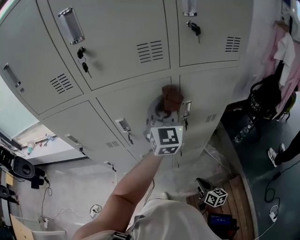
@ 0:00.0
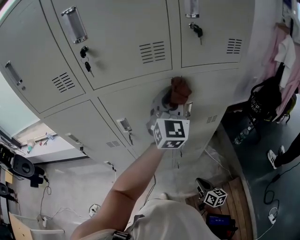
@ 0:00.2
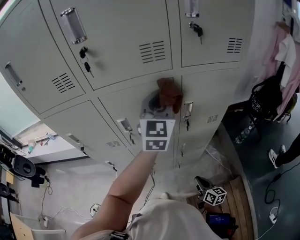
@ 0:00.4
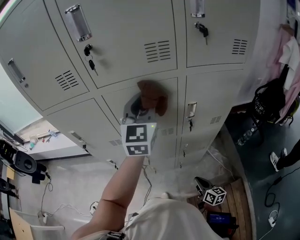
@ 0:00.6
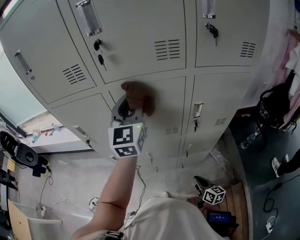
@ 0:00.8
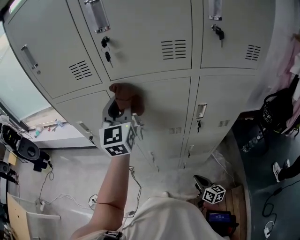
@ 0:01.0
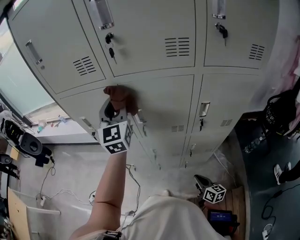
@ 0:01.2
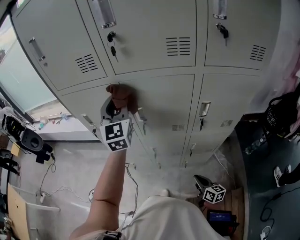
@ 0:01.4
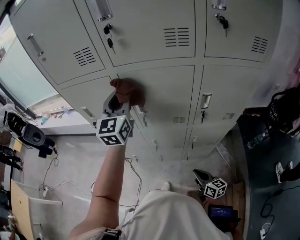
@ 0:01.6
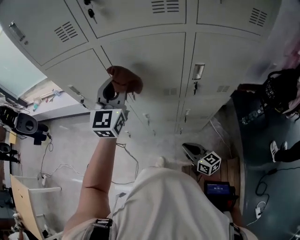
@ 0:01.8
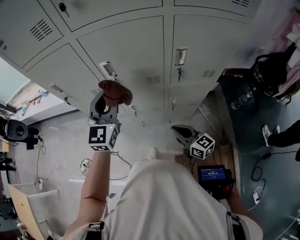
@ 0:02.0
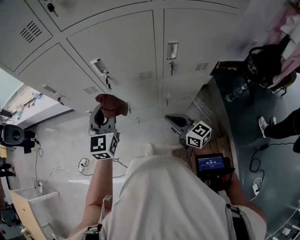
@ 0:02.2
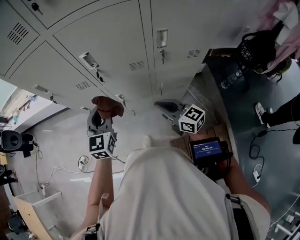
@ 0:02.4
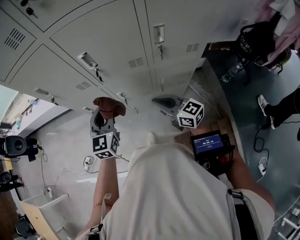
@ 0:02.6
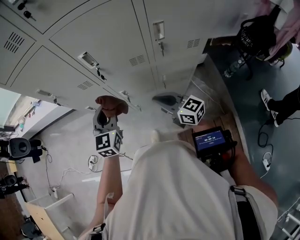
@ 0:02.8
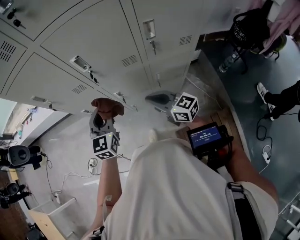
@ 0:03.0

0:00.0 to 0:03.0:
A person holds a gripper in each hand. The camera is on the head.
0:00.0 to 0:01.6: The right gripper changes place by approximately 5 cm, and rotates roughly 20 degrees. Meanwhile the left gripper heads to the left, covering about 25 cm.
0:01.6 to 0:03.0: The left gripper goes some 25 cm downward and backward, and swivels roughly 20 degrees, while the right gripper goes about 15 cm upward, forward and to the left, and swivels roughly 20 degrees.

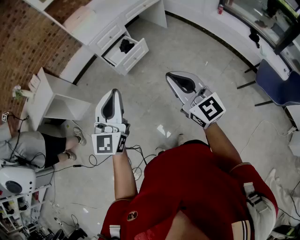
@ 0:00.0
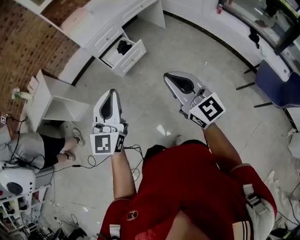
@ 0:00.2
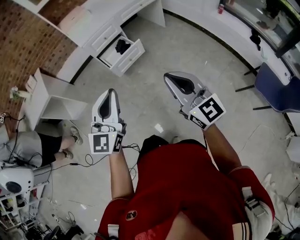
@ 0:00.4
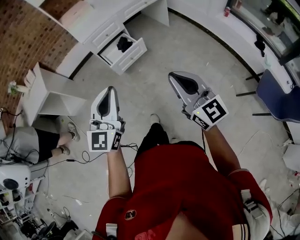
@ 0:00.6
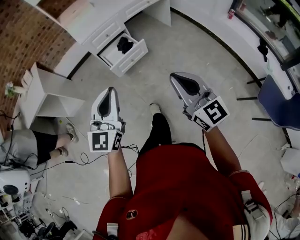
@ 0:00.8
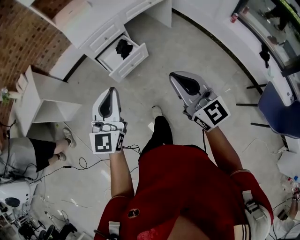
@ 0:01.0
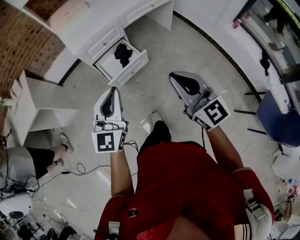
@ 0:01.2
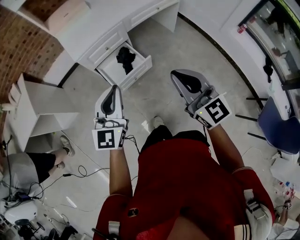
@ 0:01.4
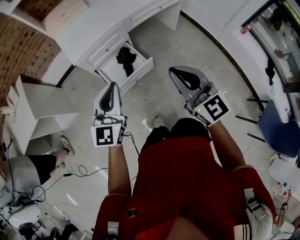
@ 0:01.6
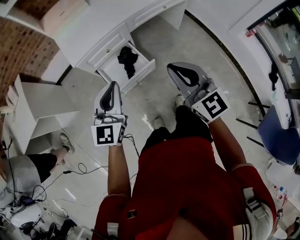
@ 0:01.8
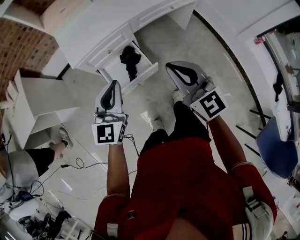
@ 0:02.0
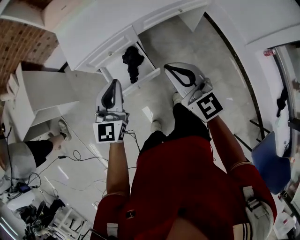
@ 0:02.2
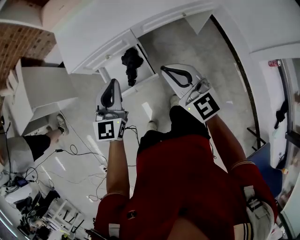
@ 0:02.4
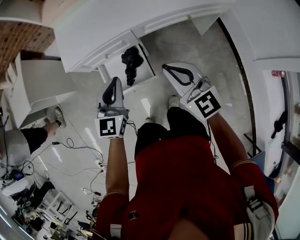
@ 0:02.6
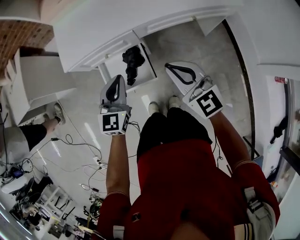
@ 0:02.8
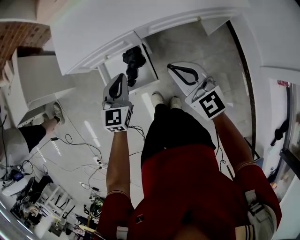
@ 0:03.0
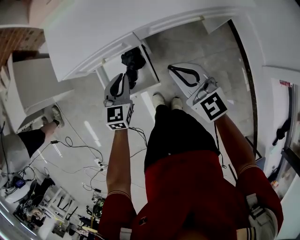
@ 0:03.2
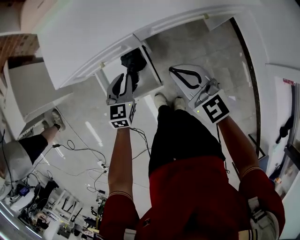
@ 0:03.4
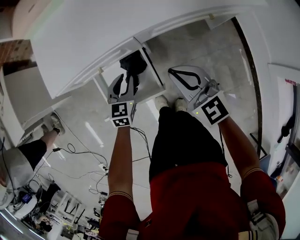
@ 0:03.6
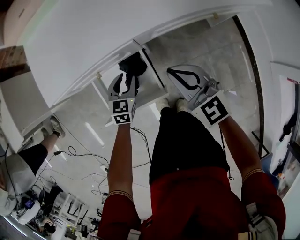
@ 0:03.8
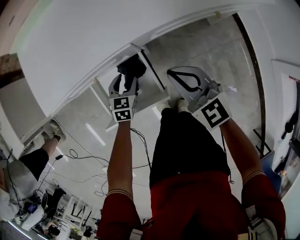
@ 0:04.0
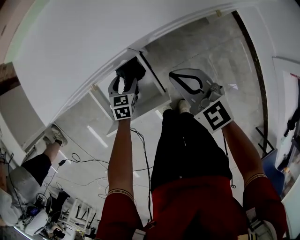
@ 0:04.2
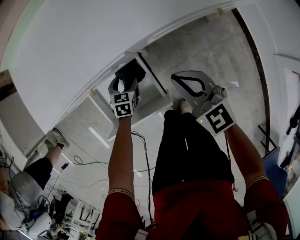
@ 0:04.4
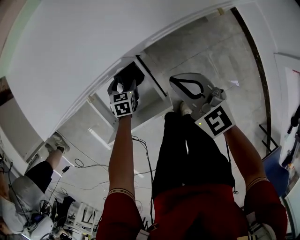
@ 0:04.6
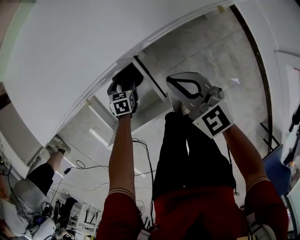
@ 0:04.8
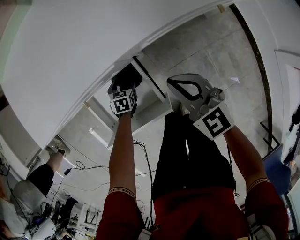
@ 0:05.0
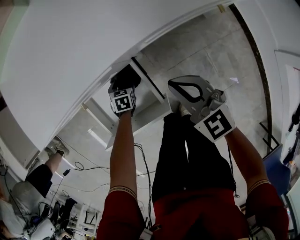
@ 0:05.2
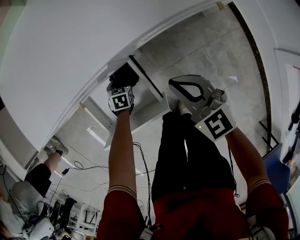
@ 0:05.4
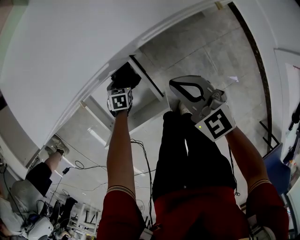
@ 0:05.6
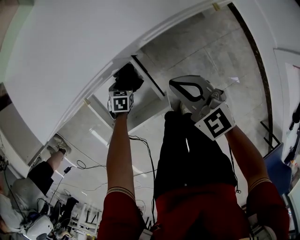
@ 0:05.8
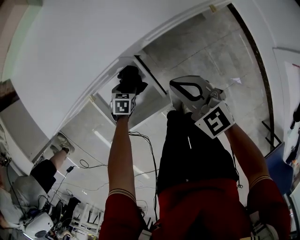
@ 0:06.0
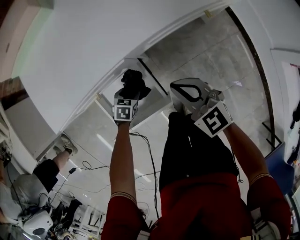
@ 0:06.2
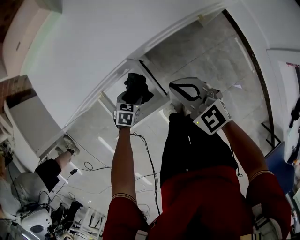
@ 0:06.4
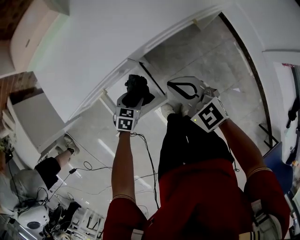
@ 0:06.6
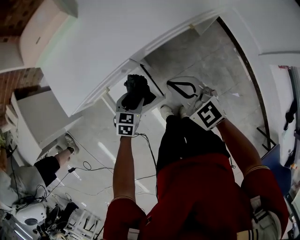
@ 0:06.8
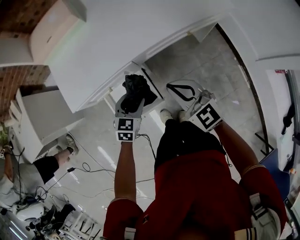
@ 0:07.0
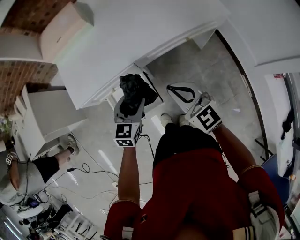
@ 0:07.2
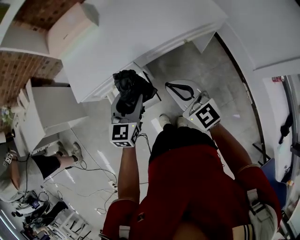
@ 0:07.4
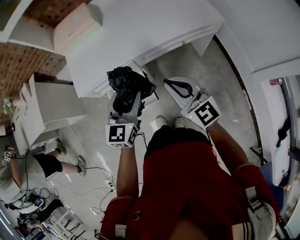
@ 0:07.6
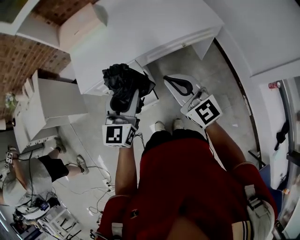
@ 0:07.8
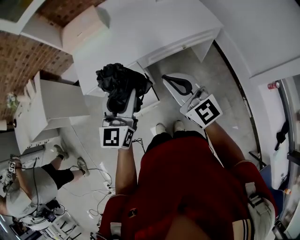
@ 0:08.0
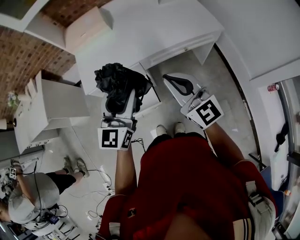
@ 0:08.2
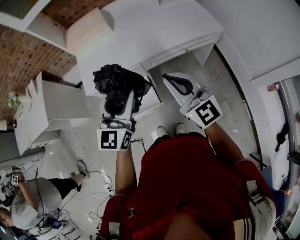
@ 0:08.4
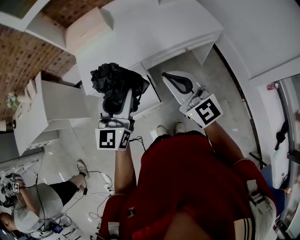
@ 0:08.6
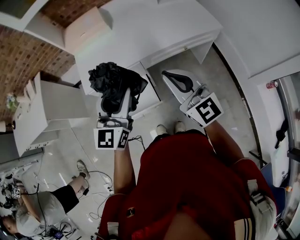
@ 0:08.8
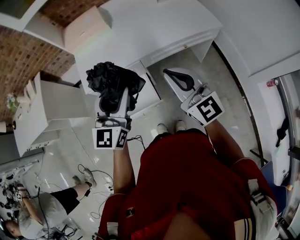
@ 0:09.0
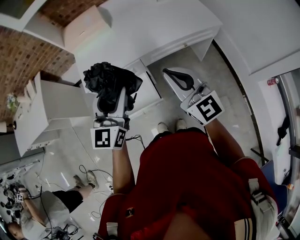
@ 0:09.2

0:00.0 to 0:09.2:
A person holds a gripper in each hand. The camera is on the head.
0:00.0 to 0:01.6: The two grippers travel together, forward, about 50 cm.
0:01.6 to 0:03.0: The left gripper travels forward, downward and to the right by roughly 35 cm, and swivels roughly 30 degrees; the right gripper goes about 35 cm forward and downward, and turns by about 30 degrees.
0:03.0 to 0:04.6: The left gripper moves downward, about 40 cm, tips its fingers downward by approximately 40 degrees, and opens; the right gripper is displaced downward by about 20 cm.
0:04.6 to 0:06.2: The left gripper travels backward by about 5 cm.
0:06.2 to 0:07.6: The left gripper travels upward by roughly 50 cm, and tilts its fingers about 50 degrees upward; the right gripper heads upward, covering some 30 cm, and swivels approximately 20 degrees.
0:07.6 to 0:09.2: The right gripper heads upward, covering about 10 cm. The left gripper moves upward and to the left, approximately 15 cm.

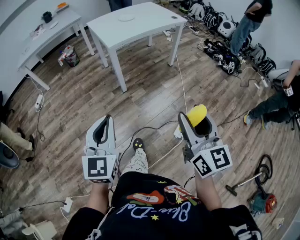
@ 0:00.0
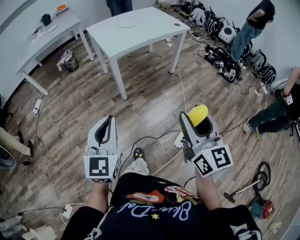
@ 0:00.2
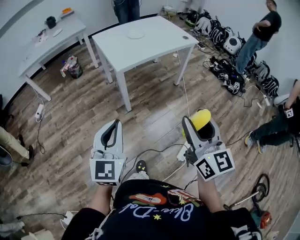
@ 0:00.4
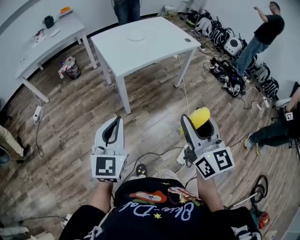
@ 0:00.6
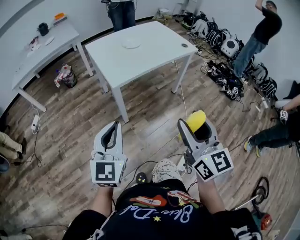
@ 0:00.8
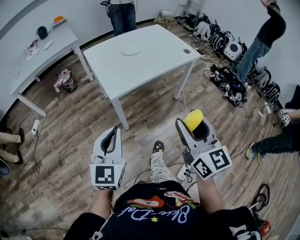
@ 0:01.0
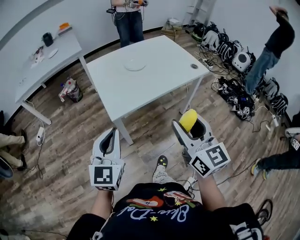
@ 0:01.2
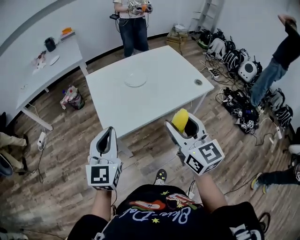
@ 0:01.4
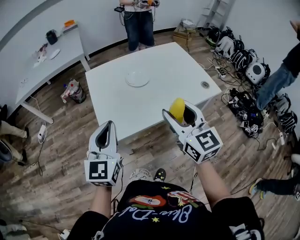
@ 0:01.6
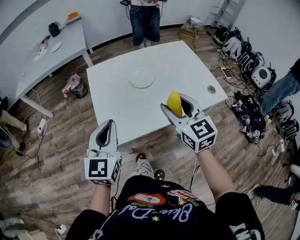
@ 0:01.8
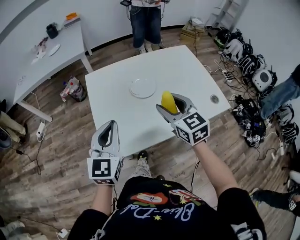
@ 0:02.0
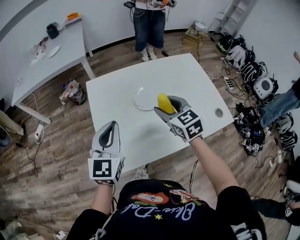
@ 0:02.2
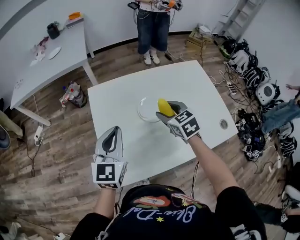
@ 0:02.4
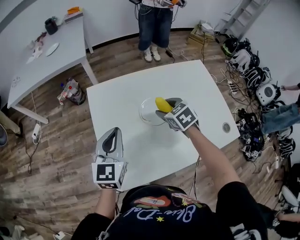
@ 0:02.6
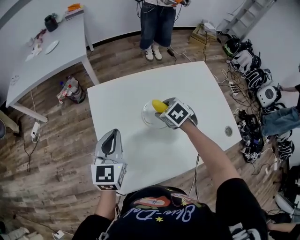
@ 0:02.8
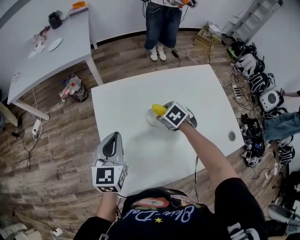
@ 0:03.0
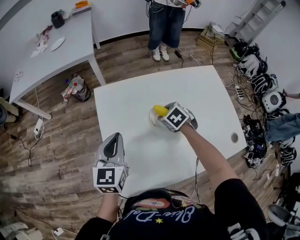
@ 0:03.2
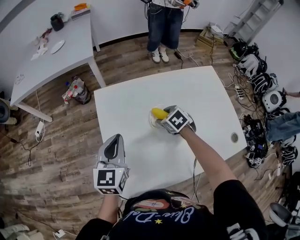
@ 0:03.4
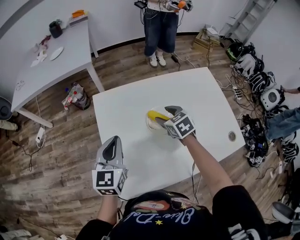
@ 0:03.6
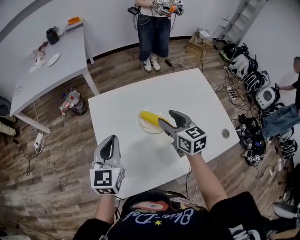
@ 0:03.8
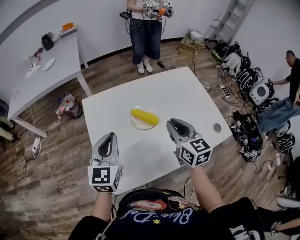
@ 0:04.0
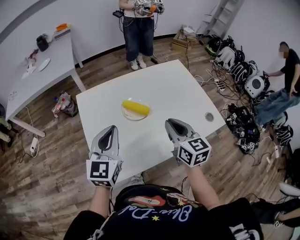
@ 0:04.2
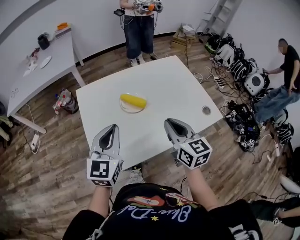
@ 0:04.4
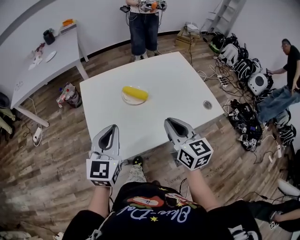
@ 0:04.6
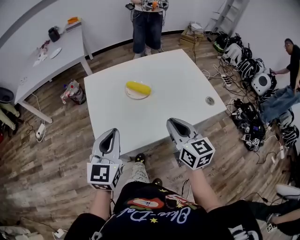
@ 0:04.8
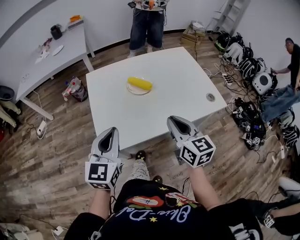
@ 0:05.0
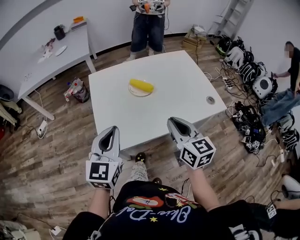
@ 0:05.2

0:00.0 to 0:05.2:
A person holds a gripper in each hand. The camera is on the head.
0:00.0 to 0:01.8: The pair of grippers is taken forward, roughly 80 cm. The right gripper turns by approximately 30 degrees.
0:01.8 to 0:03.4: The left gripper shifts approximately 30 cm forward. Meanwhile the right gripper travels forward and downward by approximately 40 cm, and points its fingers roughly 50 degrees further downward.
0:03.4 to 0:05.2: The right gripper travels backward and upward by roughly 40 cm, angles its fingers upward, by roughly 50 degrees, and closes. The left gripper heads backward, covering some 25 cm.

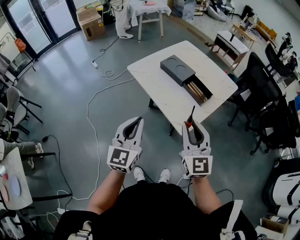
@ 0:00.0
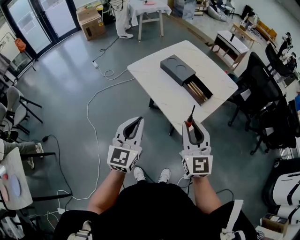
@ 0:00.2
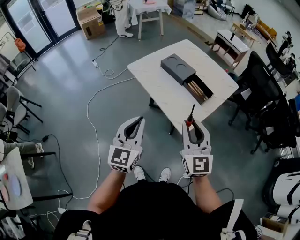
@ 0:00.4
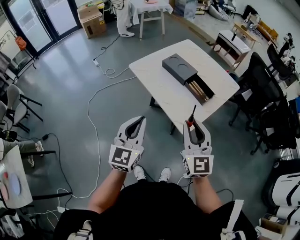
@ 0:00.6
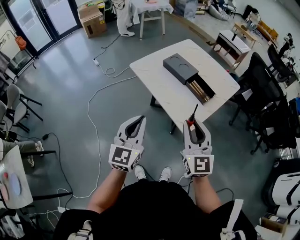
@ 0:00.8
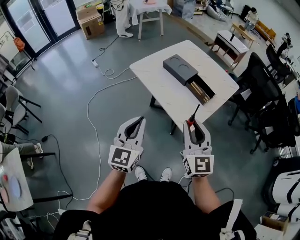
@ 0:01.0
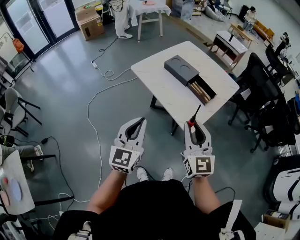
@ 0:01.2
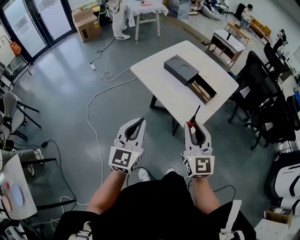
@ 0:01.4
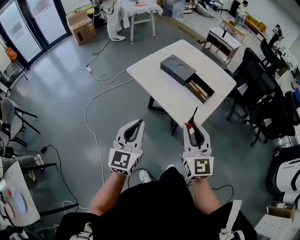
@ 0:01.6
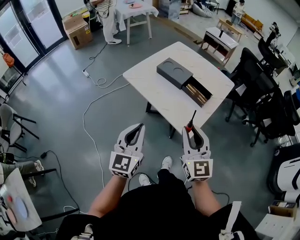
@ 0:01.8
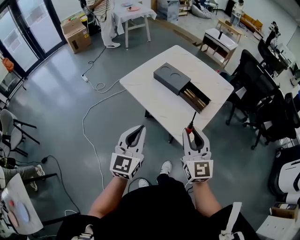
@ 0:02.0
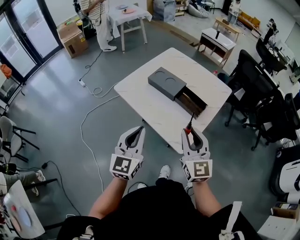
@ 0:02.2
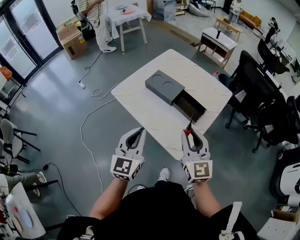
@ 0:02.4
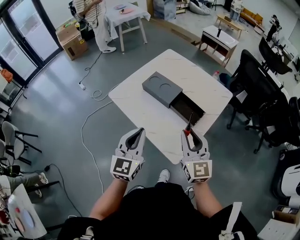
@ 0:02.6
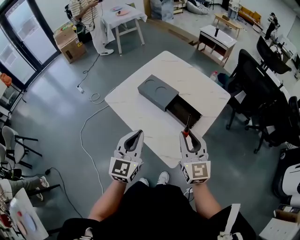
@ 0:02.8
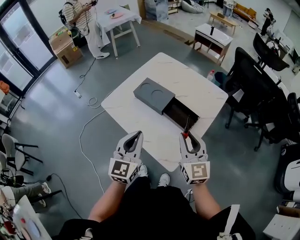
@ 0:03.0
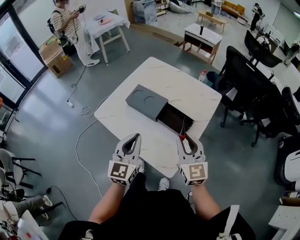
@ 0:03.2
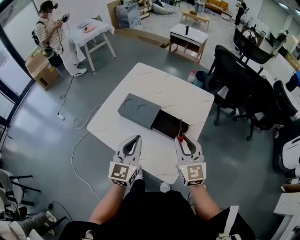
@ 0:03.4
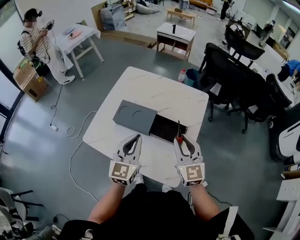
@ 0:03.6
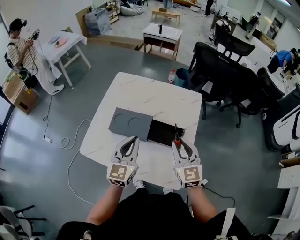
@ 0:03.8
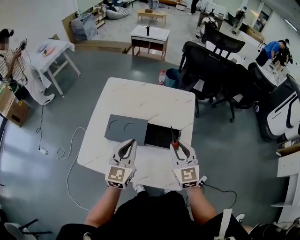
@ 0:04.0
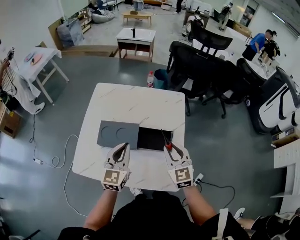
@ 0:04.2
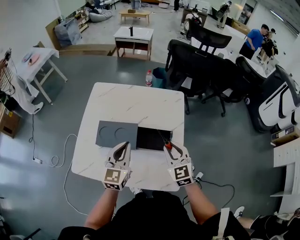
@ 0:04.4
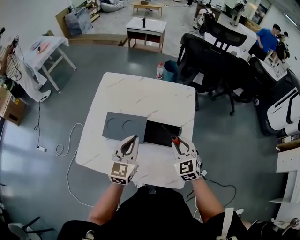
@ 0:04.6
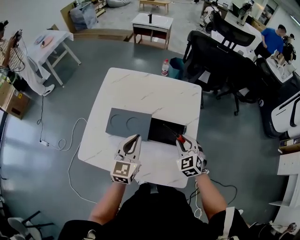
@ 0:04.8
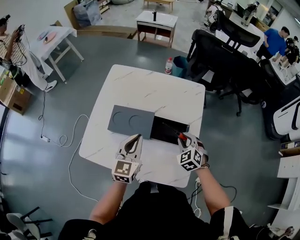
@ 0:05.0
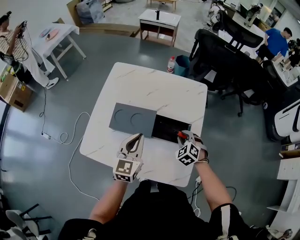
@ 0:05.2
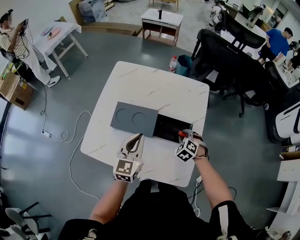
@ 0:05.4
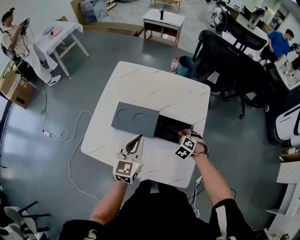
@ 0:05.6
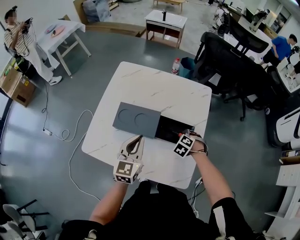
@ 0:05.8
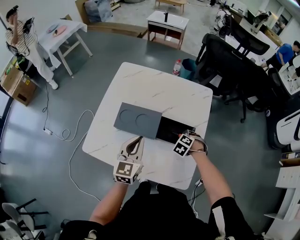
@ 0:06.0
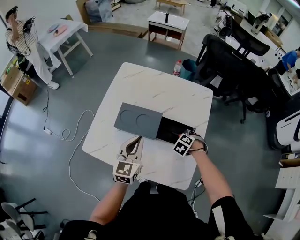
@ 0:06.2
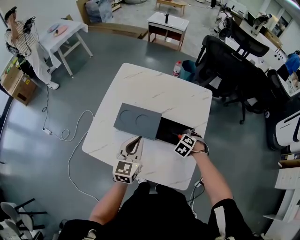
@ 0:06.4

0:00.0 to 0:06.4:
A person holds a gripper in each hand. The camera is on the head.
0:00.0 to 0:01.6: Both grippers move to the left, some 5 cm.
0:01.6 to 0:03.2: Both grippers travel together forward and to the right, approximately 30 cm.
0:03.2 to 0:04.8: The left gripper changes place by roughly 20 cm, and swivels about 30 degrees. The right gripper goes roughly 15 cm downward, and angles its fingers downward, by approximately 30 degrees.
0:04.8 to 0:06.4: The right gripper travels downward by approximately 10 cm, and points its fingers approximately 40 degrees further downward.
